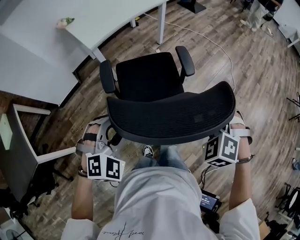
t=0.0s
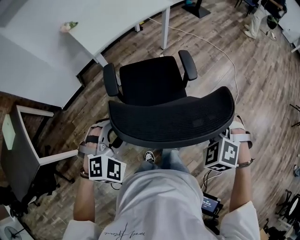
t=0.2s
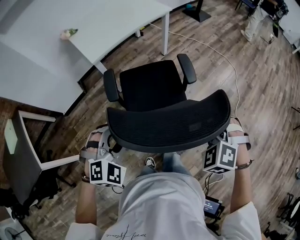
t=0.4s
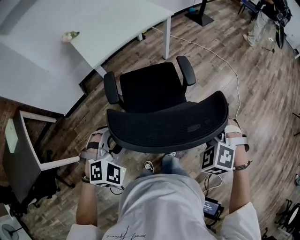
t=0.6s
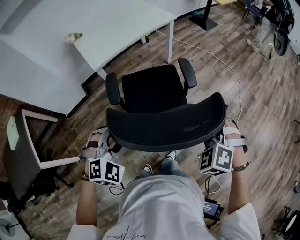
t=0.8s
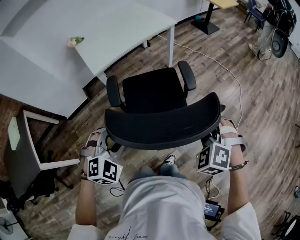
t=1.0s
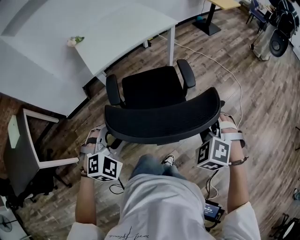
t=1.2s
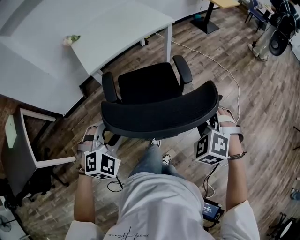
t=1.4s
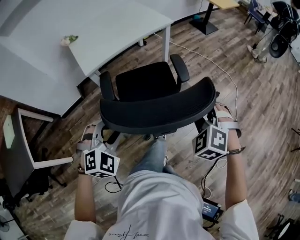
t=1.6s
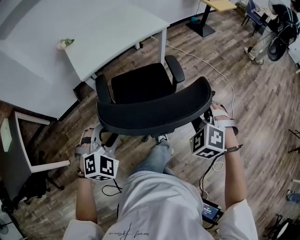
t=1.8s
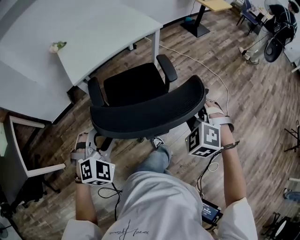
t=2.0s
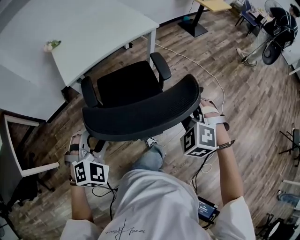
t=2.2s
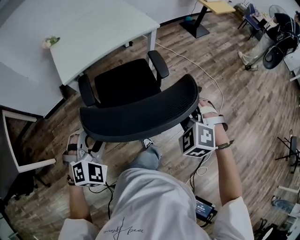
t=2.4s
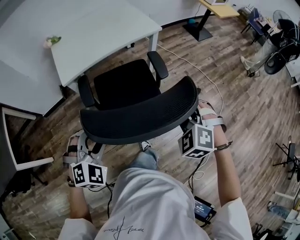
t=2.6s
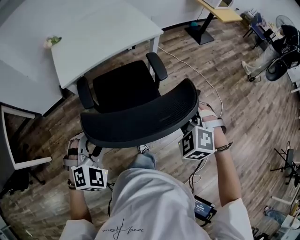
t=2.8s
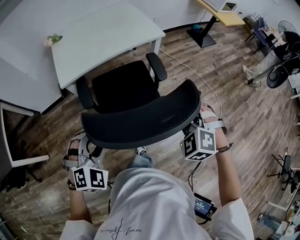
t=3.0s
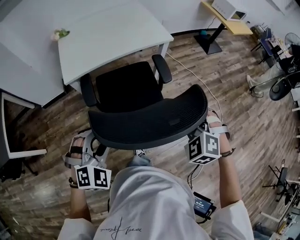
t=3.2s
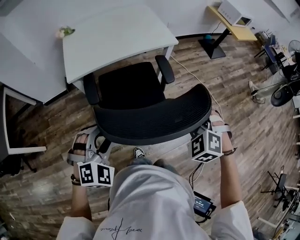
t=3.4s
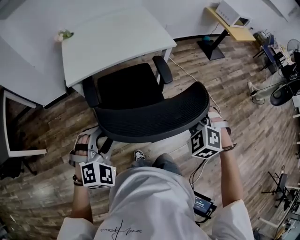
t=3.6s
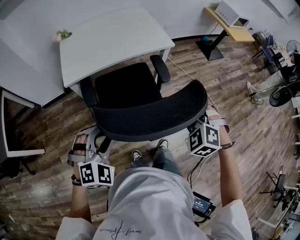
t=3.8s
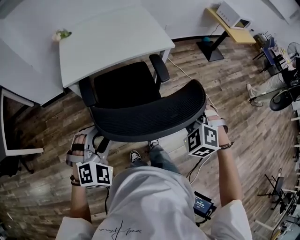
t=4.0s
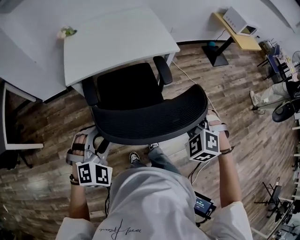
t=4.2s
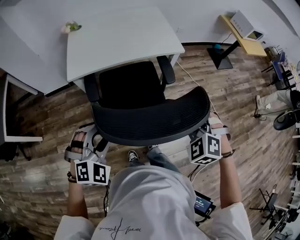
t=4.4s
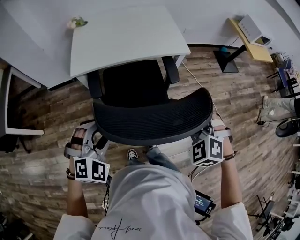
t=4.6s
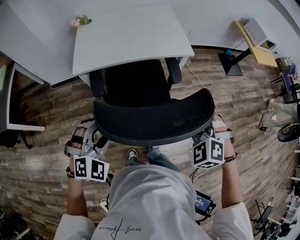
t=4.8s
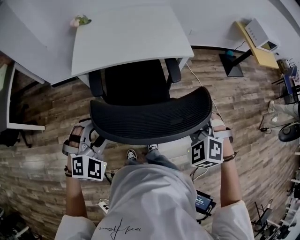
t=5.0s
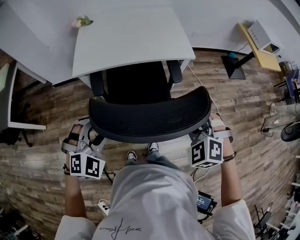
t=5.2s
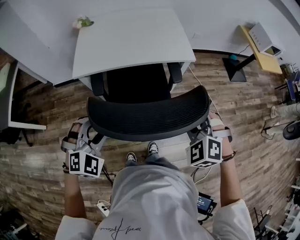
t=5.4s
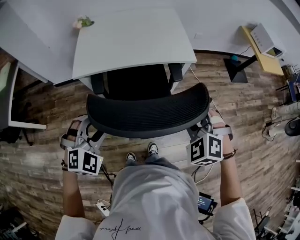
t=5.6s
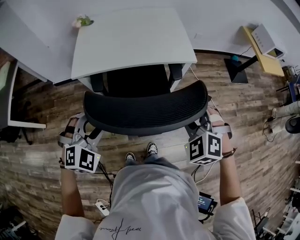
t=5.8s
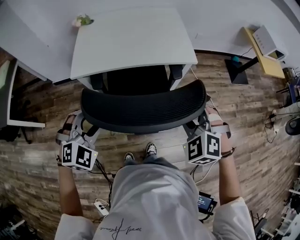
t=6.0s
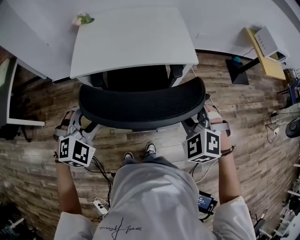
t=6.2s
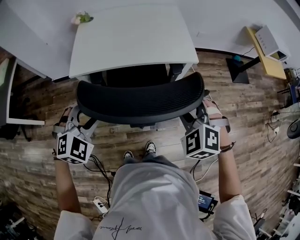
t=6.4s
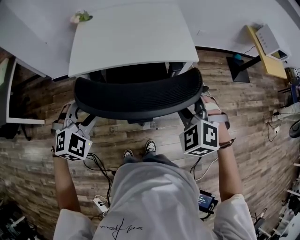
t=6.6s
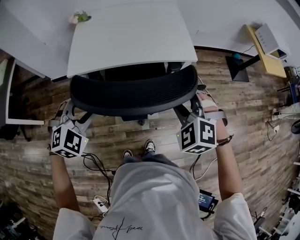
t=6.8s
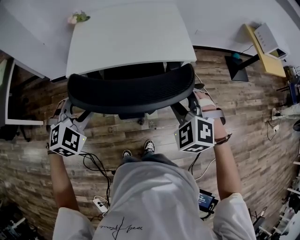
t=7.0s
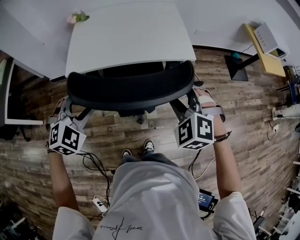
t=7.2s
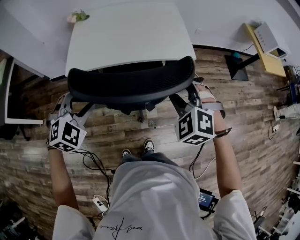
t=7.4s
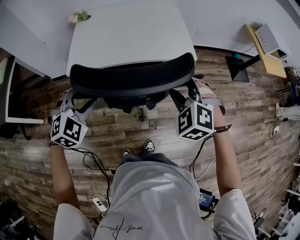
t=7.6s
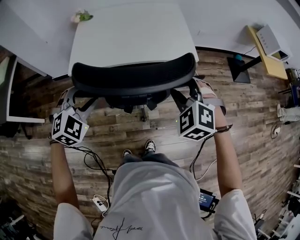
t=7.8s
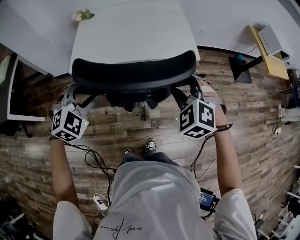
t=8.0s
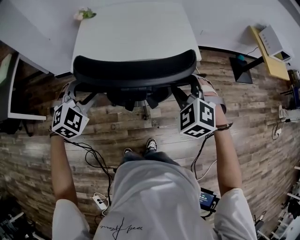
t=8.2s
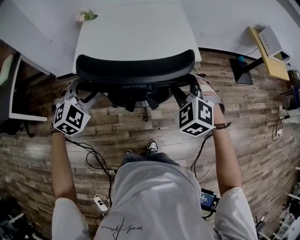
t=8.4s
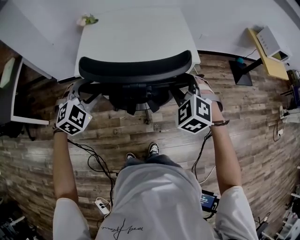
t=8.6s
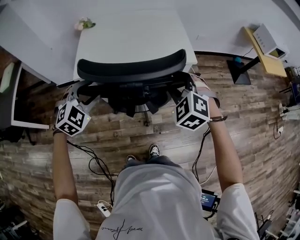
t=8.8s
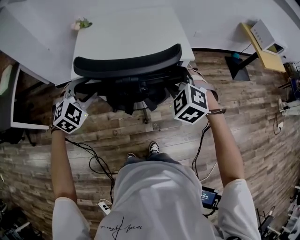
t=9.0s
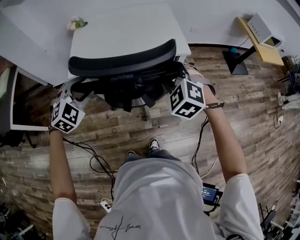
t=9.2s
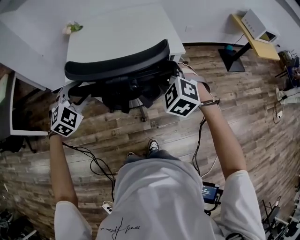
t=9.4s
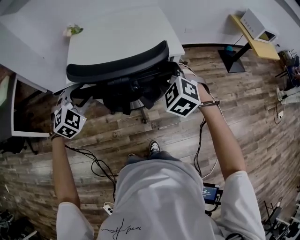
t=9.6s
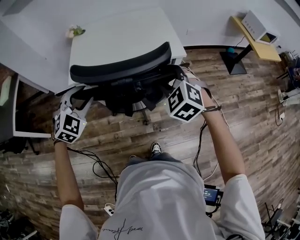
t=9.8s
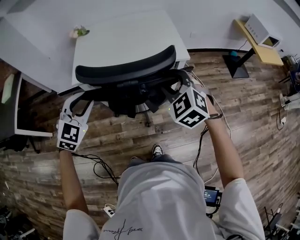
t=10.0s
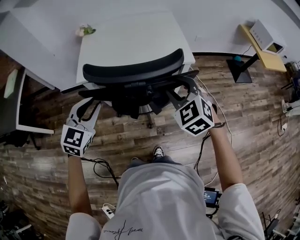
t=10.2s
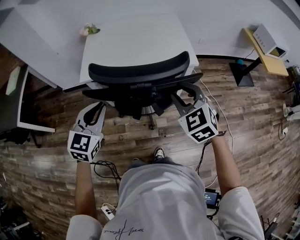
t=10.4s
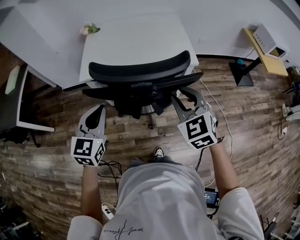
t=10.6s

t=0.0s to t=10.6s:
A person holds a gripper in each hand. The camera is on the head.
t=0.0s to t=1.6s: Both grippers travel together forward, some 20 cm.
t=1.6s to t=3.0s: The right gripper moves forward, some 20 cm, while the left gripper heads forward and to the right, covering roughly 15 cm.
t=3.0s to t=4.6s: The two grippers go about 10 cm forward.
t=4.6s to t=6.0s: The two grippers go some 10 cm forward.
t=6.0s to t=7.6s: Both grippers move forward, approximately 10 cm.
t=7.6s to t=9.0s: The grippers stay close to where they were, moving slightly.
t=9.0s to t=10.6s: The right gripper goes approximately 5 cm backward, and turns by some 30 degrees; the left gripper moves backward and upward, roughly 10 cm, twists approximately 40 degrees counterclockwise, seen from behind, and closes.

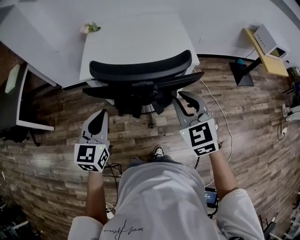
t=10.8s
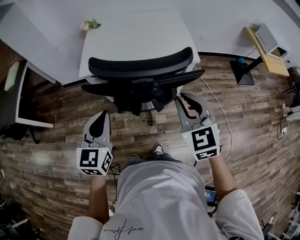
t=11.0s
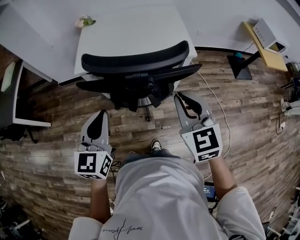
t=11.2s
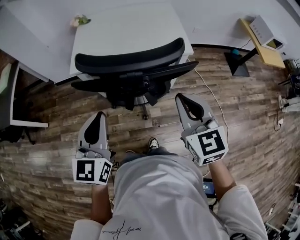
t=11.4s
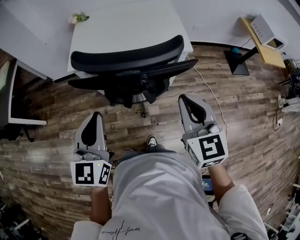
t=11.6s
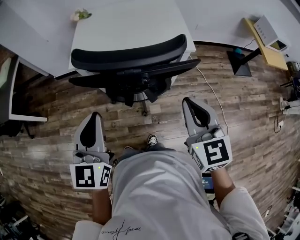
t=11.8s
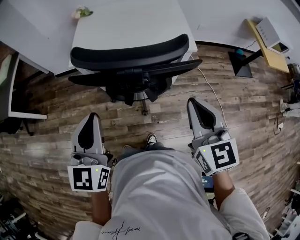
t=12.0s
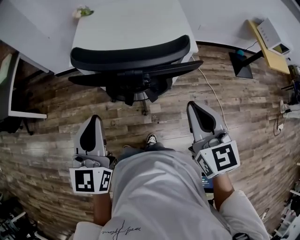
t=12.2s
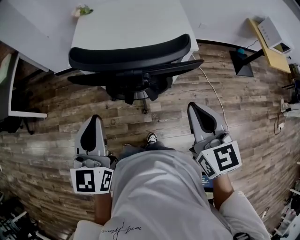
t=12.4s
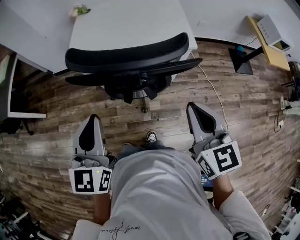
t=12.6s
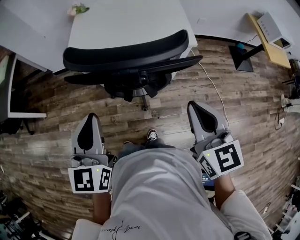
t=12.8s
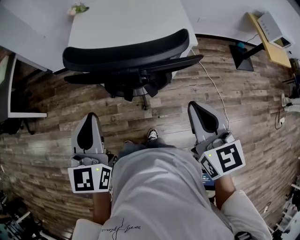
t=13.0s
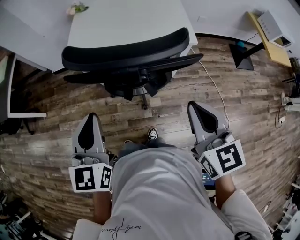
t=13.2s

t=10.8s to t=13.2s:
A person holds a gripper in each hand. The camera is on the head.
t=10.8s to t=12.0s: The left gripper shifts by approximately 5 cm; the right gripper moves backward, some 5 cm, and turns by roughly 20 degrees.
t=12.0s to t=13.2s: The grippers stay close to where they were, moving slightly.

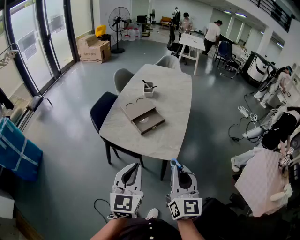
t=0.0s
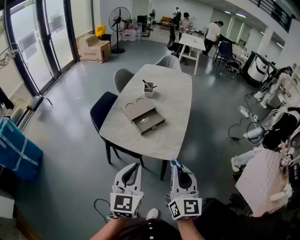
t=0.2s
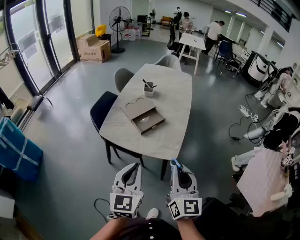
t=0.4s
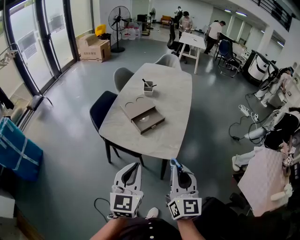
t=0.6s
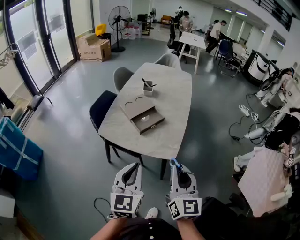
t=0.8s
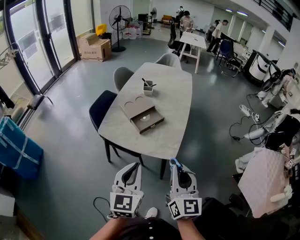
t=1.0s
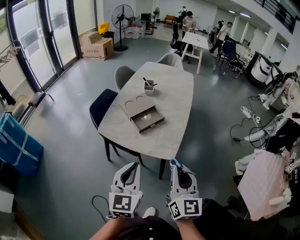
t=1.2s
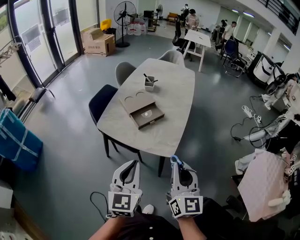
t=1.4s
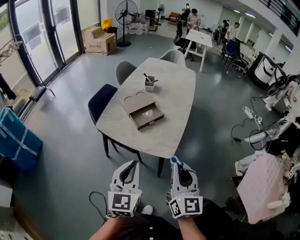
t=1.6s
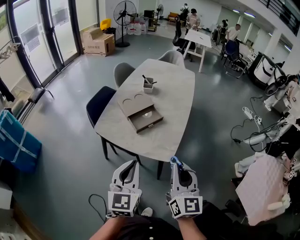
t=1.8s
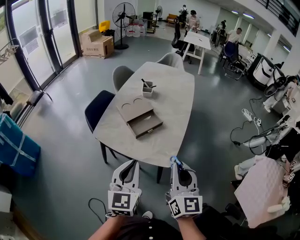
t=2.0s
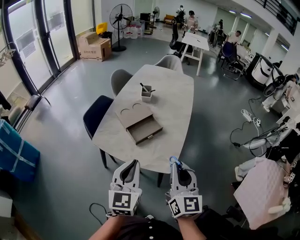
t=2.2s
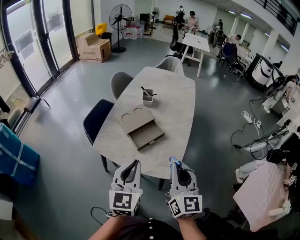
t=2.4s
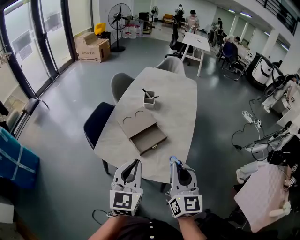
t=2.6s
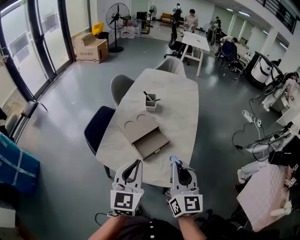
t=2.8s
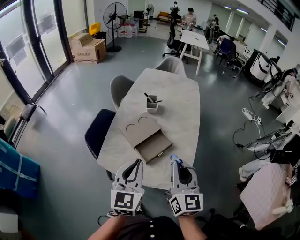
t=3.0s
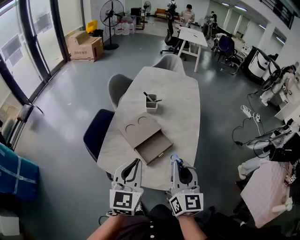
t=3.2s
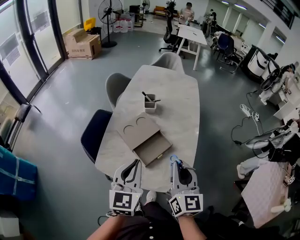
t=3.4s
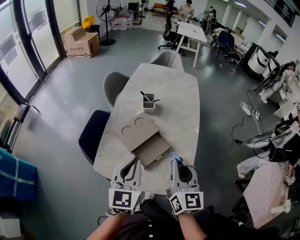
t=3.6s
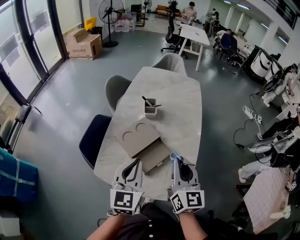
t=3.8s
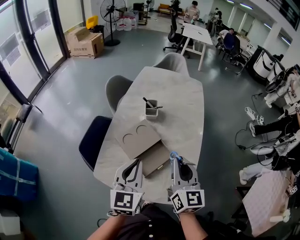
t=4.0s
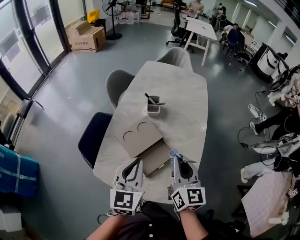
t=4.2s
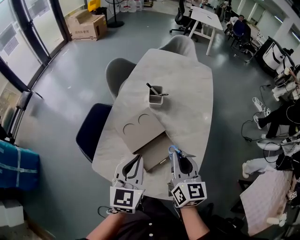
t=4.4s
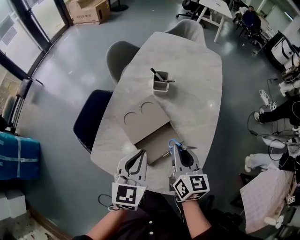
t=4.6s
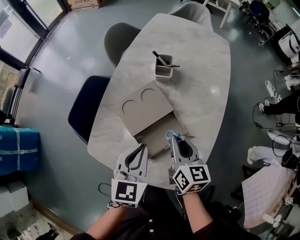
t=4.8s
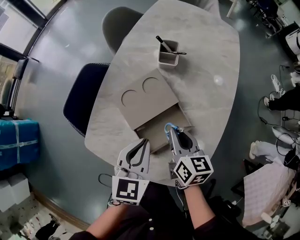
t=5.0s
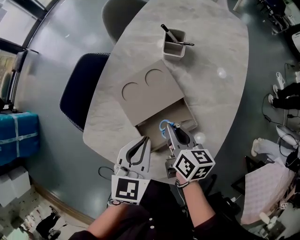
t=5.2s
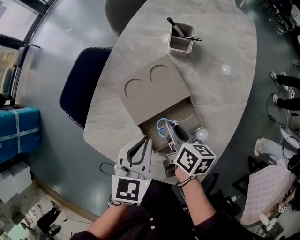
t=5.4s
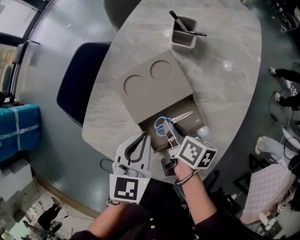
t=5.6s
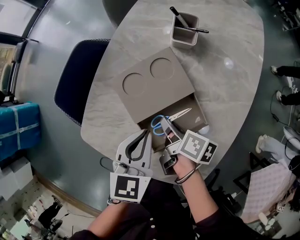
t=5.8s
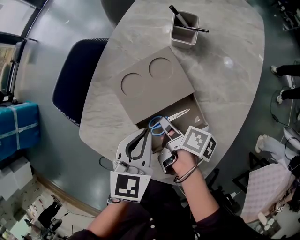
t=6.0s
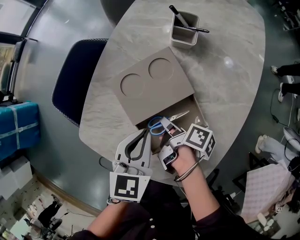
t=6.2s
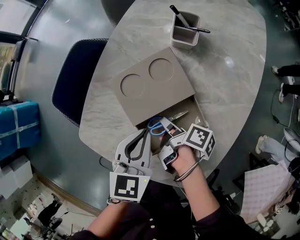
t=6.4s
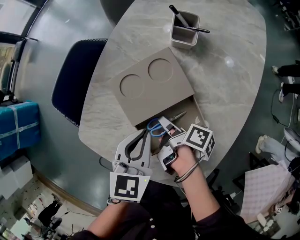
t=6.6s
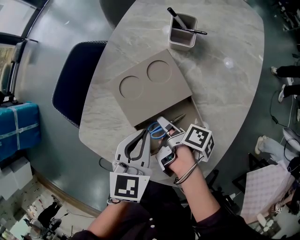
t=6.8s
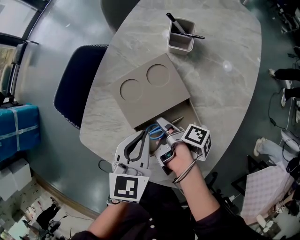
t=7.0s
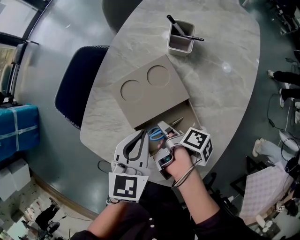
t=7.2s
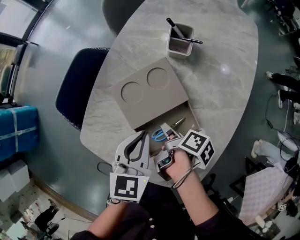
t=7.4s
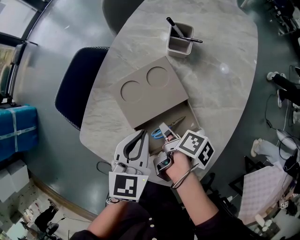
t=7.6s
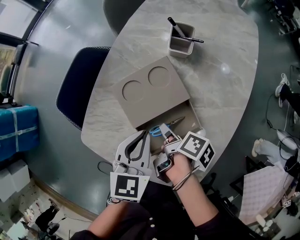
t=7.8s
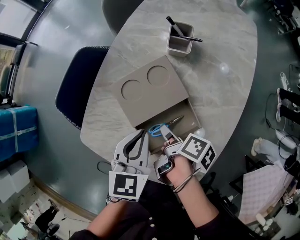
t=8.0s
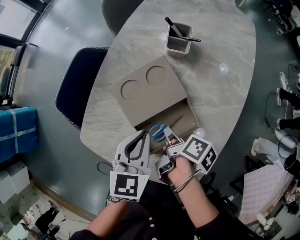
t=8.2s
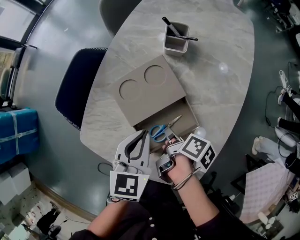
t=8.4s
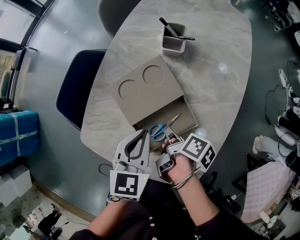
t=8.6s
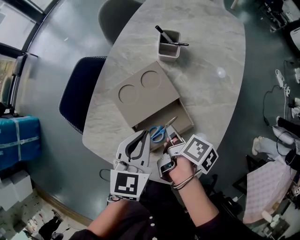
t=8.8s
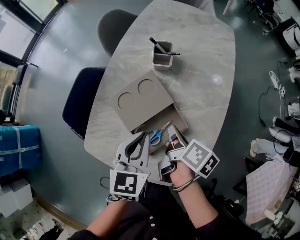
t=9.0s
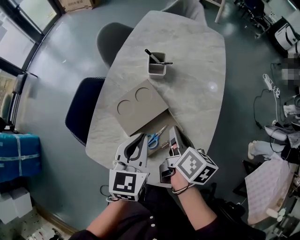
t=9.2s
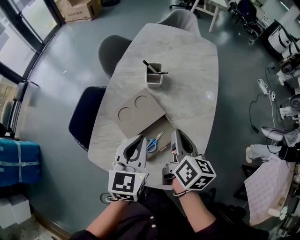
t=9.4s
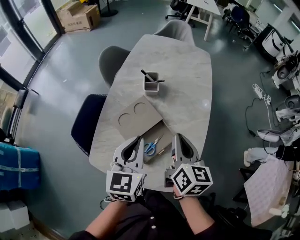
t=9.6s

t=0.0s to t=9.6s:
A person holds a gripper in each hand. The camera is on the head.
t=0.0s to t=1.6s: The left gripper changes place by approximately 5 cm; the right gripper moves approximately 5 cm.
t=1.6s to t=3.2s: The right gripper travels forward and to the left by some 25 cm. The left gripper heads forward, covering approximately 25 cm.
t=3.2s to t=4.8s: The right gripper is displaced downward and forward by some 25 cm, and changes its angle by approximately 30 degrees; the left gripper goes approximately 20 cm forward and downward.
t=4.8s to t=6.4s: The left gripper goes about 10 cm downward; the right gripper shifts about 20 cm downward, and rotates around the line of its fingers by approximately 60 degrees, clockwise from behind.
t=6.4s to t=8.0s: The right gripper shifts about 5 cm upward, and opens its fingers.
t=8.0s to t=9.6s: The left gripper travels upward by about 15 cm. Meanwhile the right gripper shifts approximately 25 cm upward, points its fingers roughly 30 degrees further upward, and closes its fingers.

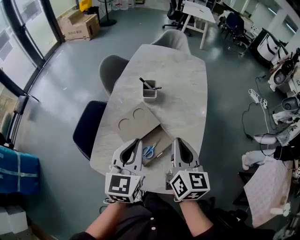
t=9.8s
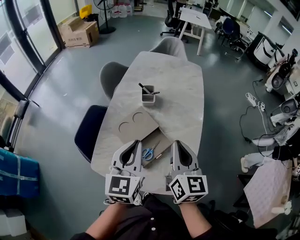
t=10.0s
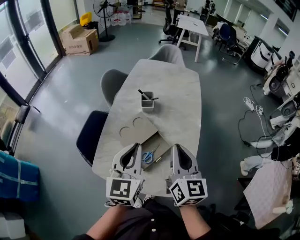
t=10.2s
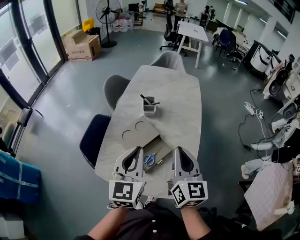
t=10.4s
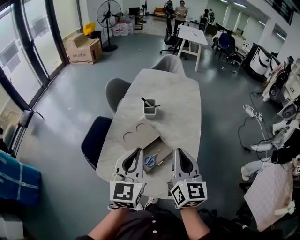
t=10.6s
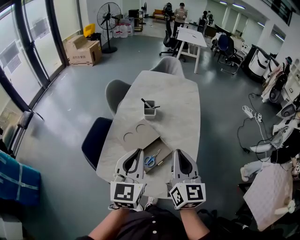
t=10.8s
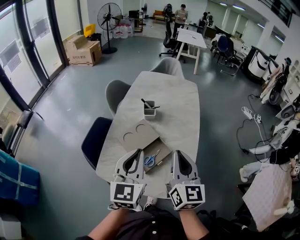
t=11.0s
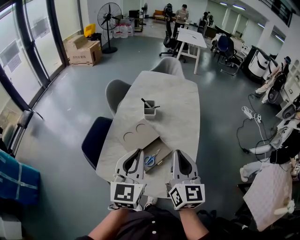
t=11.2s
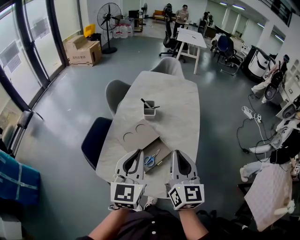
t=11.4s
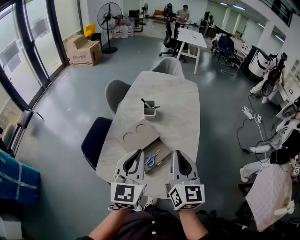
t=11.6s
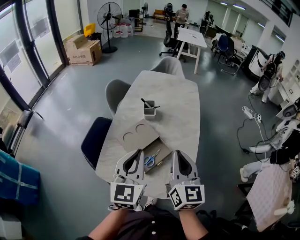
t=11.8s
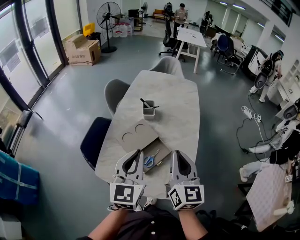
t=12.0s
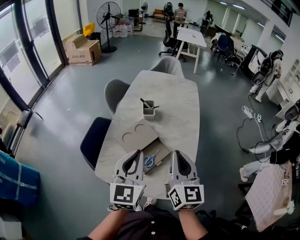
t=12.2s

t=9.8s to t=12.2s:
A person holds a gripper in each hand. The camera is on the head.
t=9.8s to t=11.0s: The two grippers go roughly 10 cm backward and upward.
t=11.0s to t=12.2s: The two grippers keep their place.
